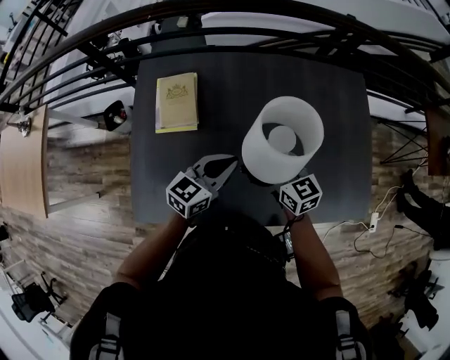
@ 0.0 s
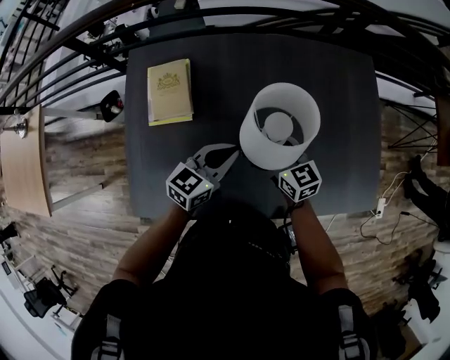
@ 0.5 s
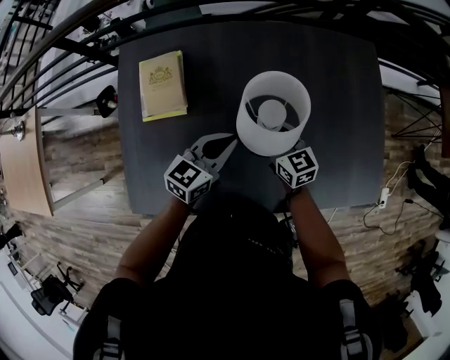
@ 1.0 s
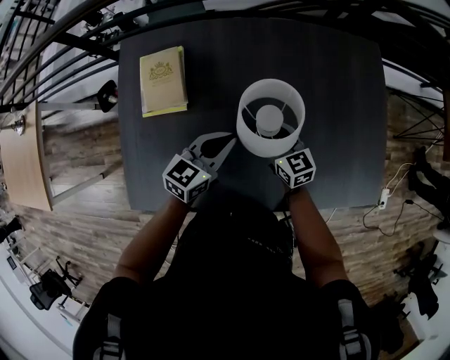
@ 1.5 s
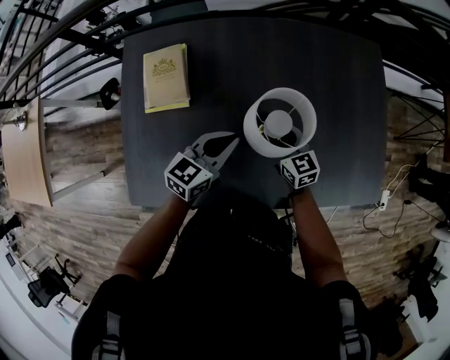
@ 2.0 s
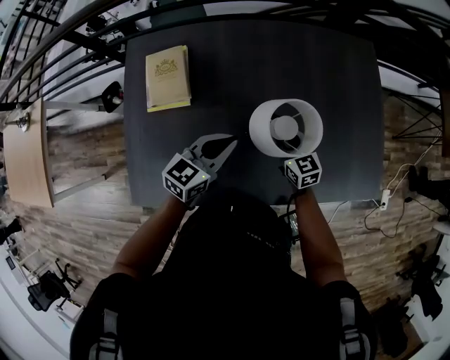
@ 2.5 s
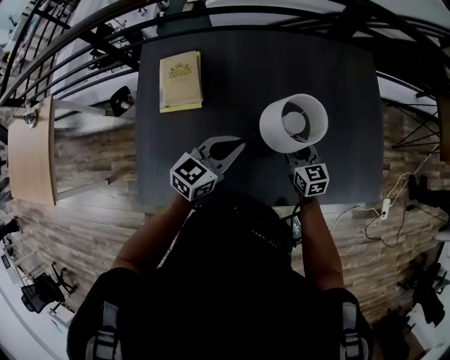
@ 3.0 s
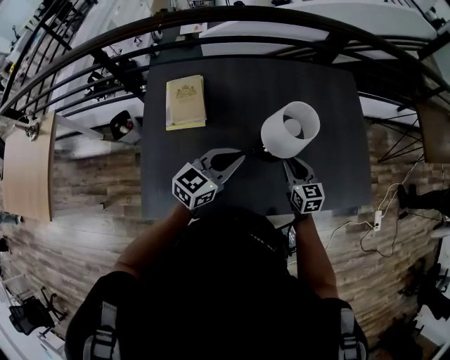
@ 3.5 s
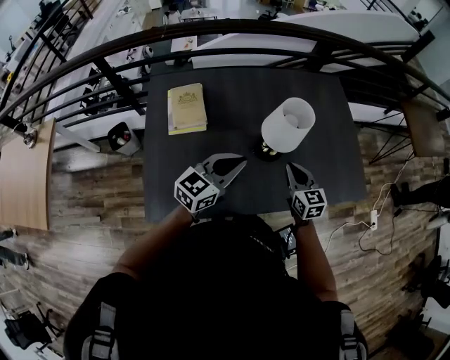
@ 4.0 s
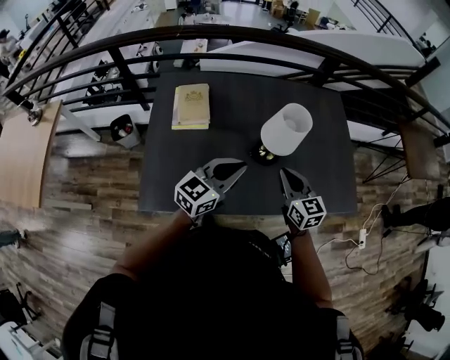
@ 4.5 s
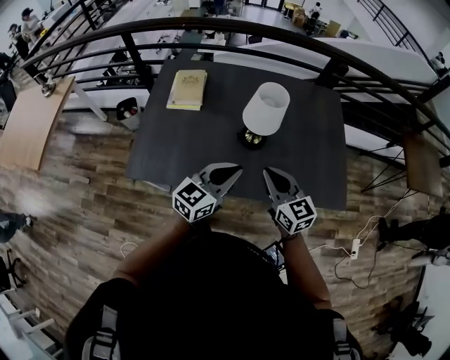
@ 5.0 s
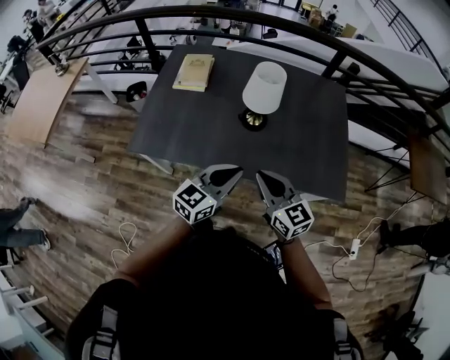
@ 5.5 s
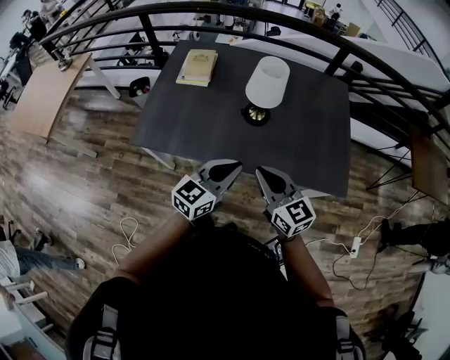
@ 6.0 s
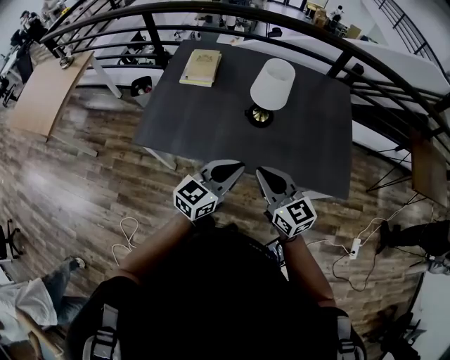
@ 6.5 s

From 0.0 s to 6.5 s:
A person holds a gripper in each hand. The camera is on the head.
From 0.0 s to 2.0 s: The left gripper goes approximately 5 cm downward. The right gripper goes approximately 10 cm downward.
From 2.0 s to 4.5 s: The grippers both shift backward and upward by approximately 25 cm. The right gripper closes up.
From 4.5 s to 6.5 s: The right gripper travels backward by approximately 25 cm, and swivels about 30 degrees, while the left gripper travels backward and to the right by approximately 25 cm.

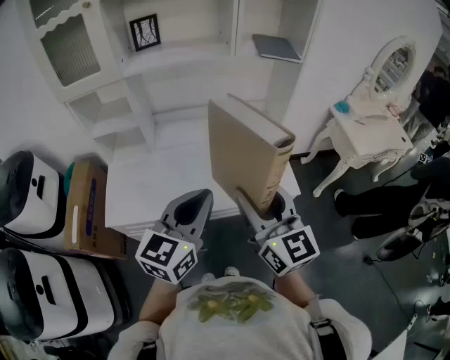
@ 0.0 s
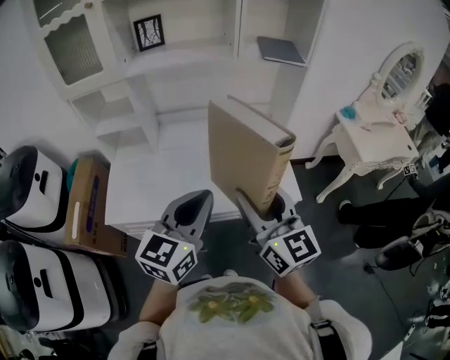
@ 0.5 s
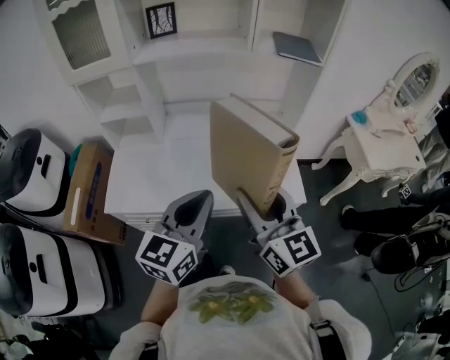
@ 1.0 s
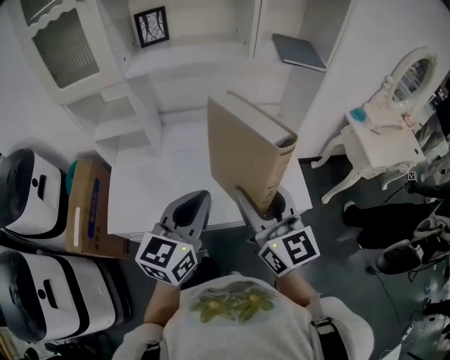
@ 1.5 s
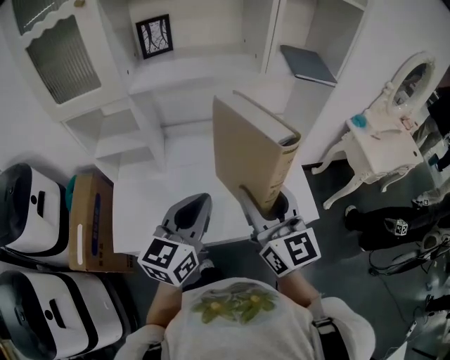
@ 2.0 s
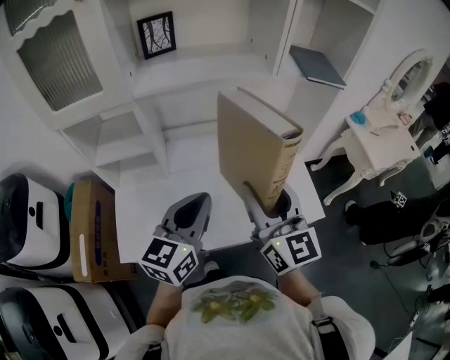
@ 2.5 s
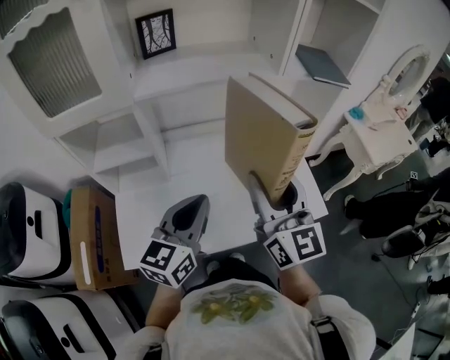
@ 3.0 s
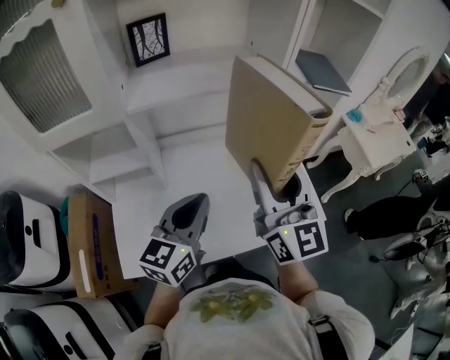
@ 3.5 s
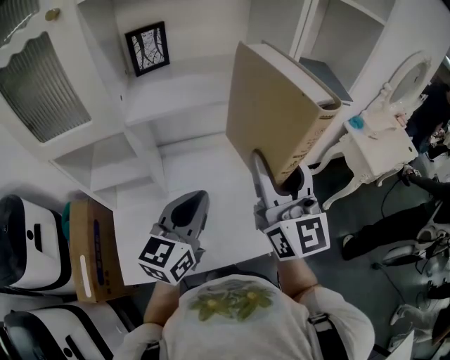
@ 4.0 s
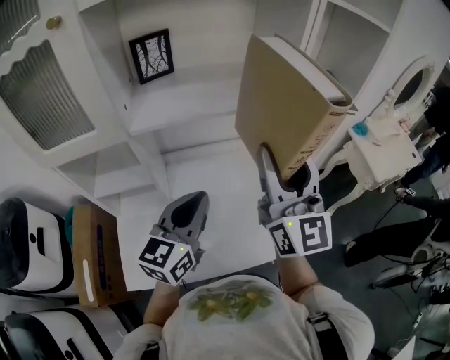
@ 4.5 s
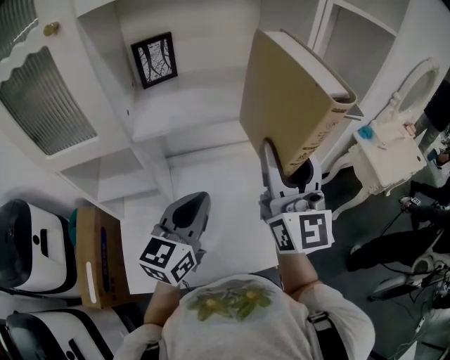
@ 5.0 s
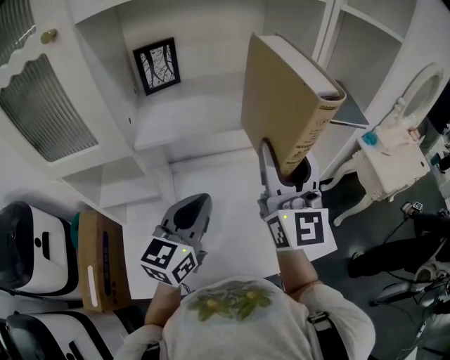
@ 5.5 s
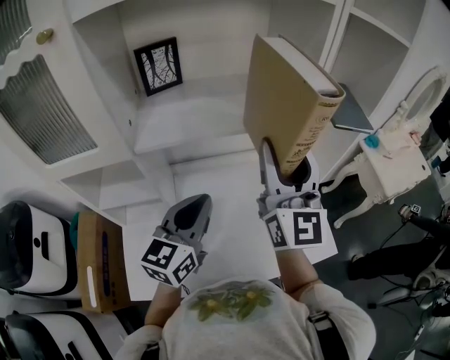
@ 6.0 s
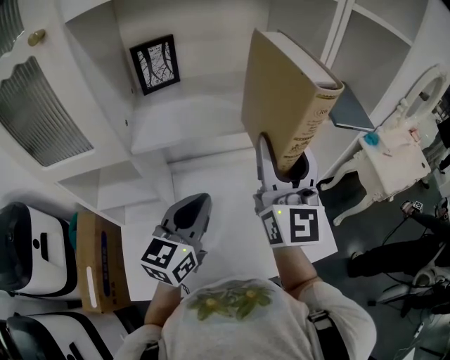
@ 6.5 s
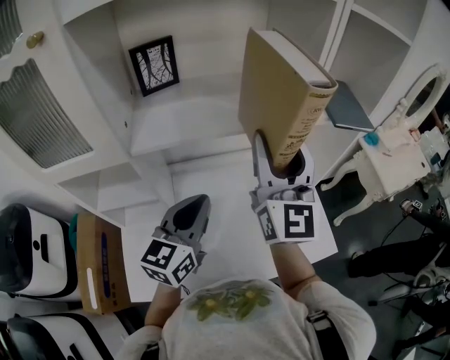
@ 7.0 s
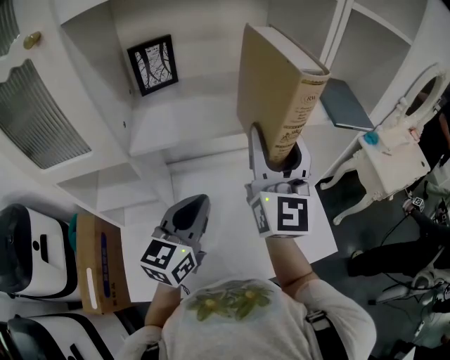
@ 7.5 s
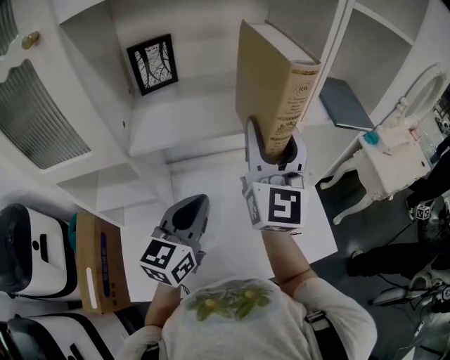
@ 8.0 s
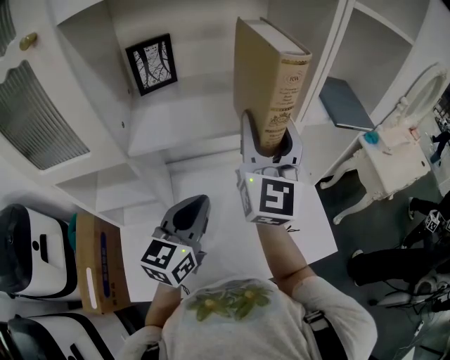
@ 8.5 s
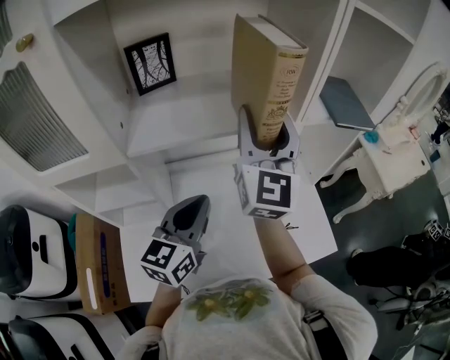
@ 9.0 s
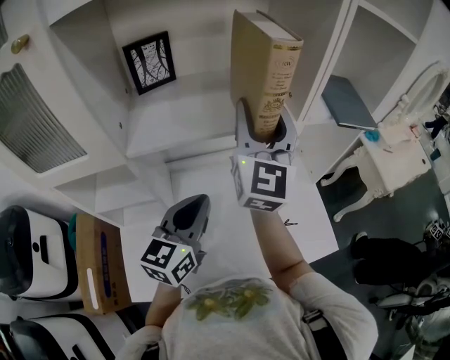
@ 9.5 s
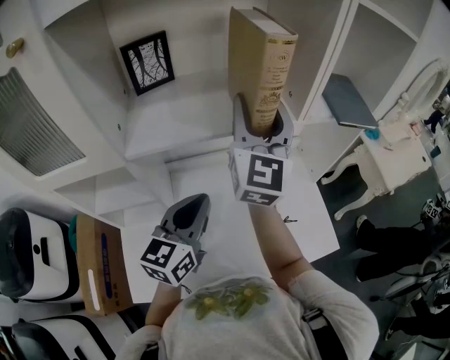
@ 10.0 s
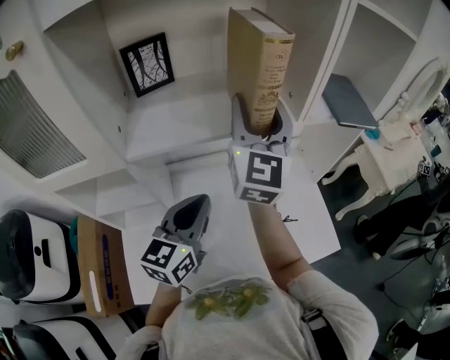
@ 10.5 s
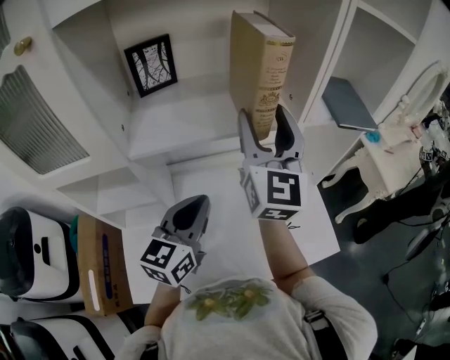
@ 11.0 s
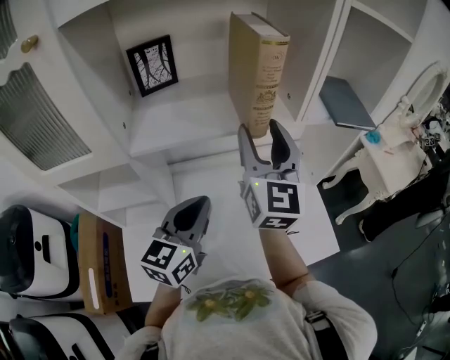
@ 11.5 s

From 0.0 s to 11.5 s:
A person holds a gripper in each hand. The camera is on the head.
From 0.0 s to 2.0 s: Both grippers move forward and to the left, roughly 15 cm.
From 2.0 s to 4.0 s: The left gripper moves forward and to the left, approximately 15 cm; the right gripper shifts approximately 15 cm forward and upward.
From 4.0 s to 6.0 s: The two grippers go roughly 10 cm forward.
From 6.0 s to 7.5 s: The grippers stay close to where they were, moving slightly.
From 7.5 s to 9.5 s: The right gripper shifts approximately 5 cm forward.
From 9.5 s to 11.5 s: There are only small adjustments of the grippers.

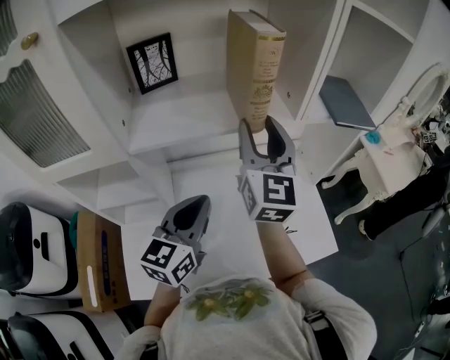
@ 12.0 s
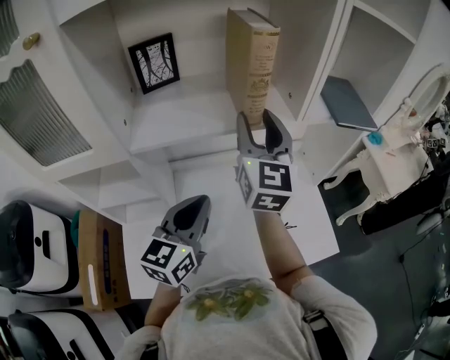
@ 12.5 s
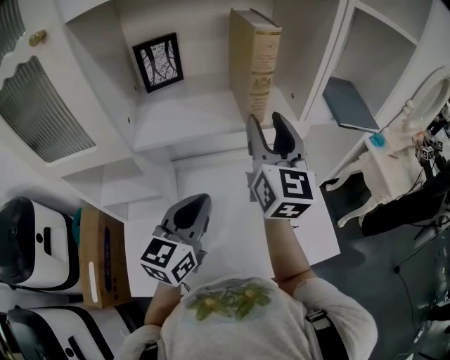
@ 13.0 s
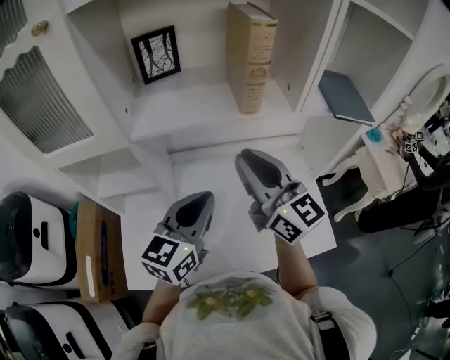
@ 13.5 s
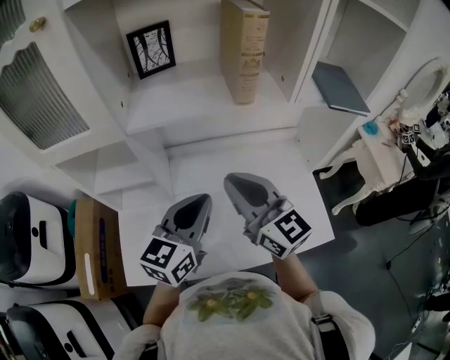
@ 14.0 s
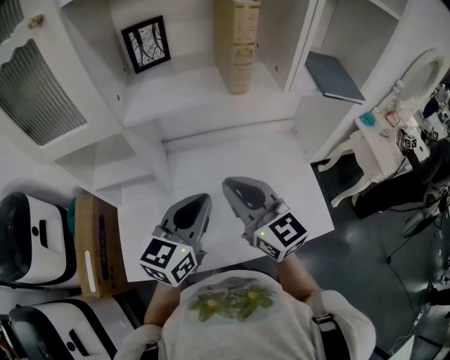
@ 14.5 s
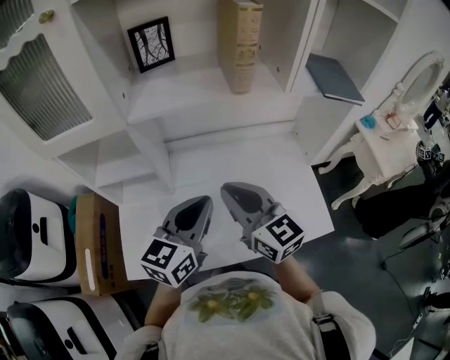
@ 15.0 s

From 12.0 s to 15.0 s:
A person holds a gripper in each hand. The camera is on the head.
From 12.0 s to 13.5 s: The right gripper shifts some 10 cm backward, rotates some 40 degrees, and closes up.
From 13.5 s to 15.0 s: The right gripper goes roughly 10 cm backward and downward; the left gripper heads backward, covering about 5 cm.

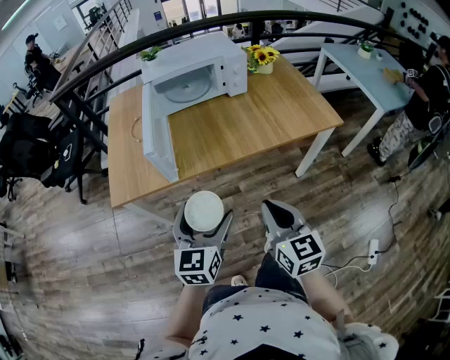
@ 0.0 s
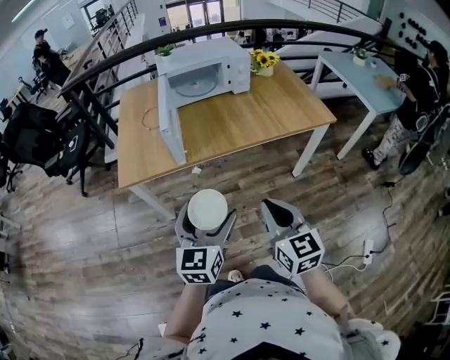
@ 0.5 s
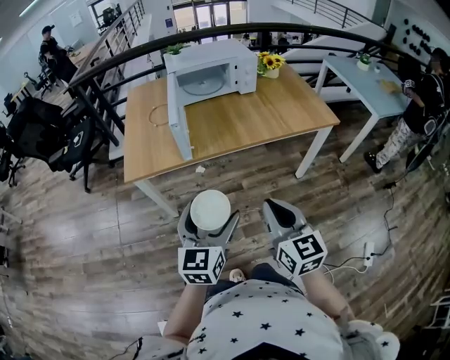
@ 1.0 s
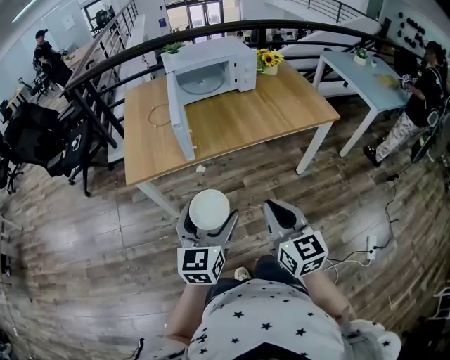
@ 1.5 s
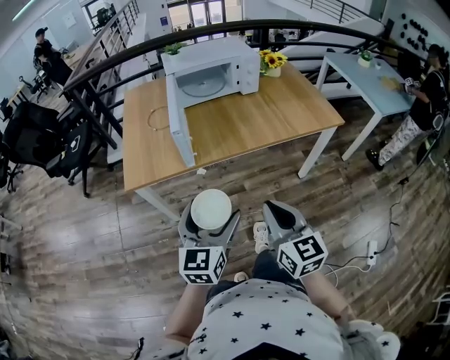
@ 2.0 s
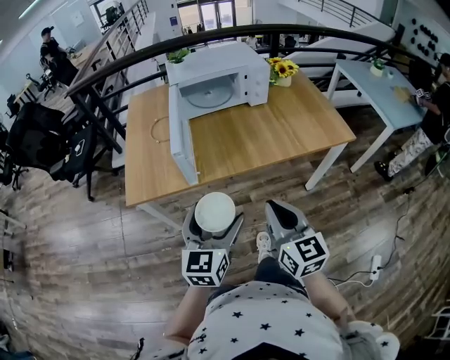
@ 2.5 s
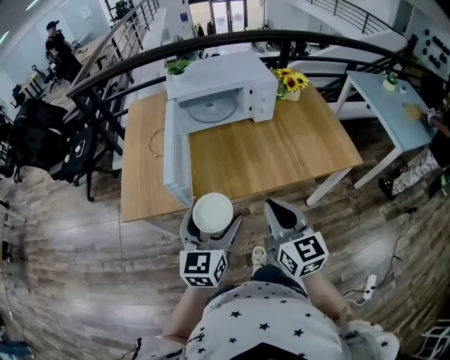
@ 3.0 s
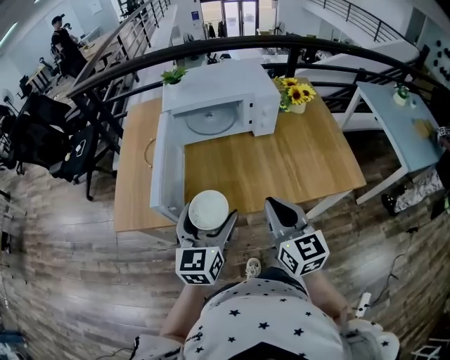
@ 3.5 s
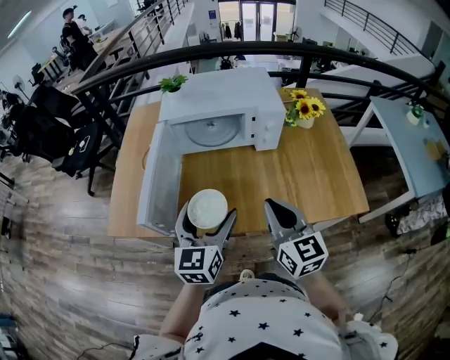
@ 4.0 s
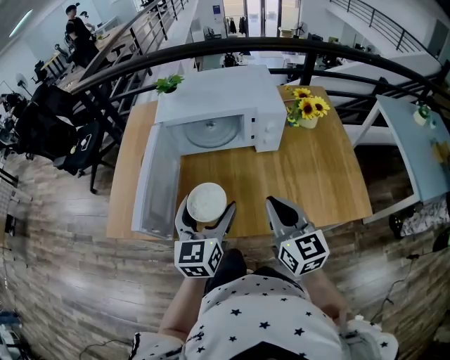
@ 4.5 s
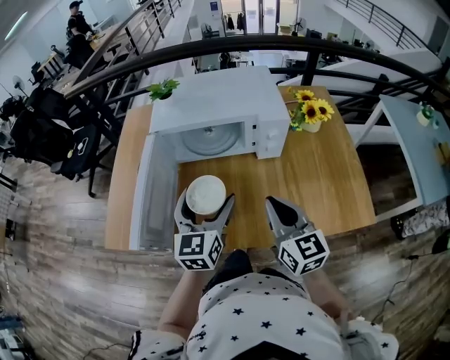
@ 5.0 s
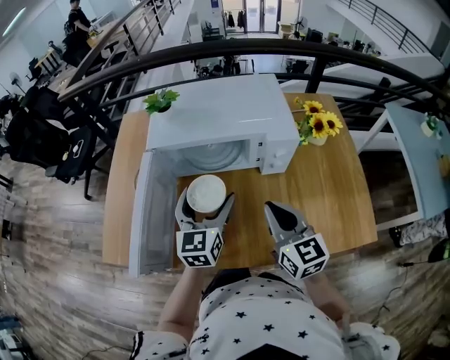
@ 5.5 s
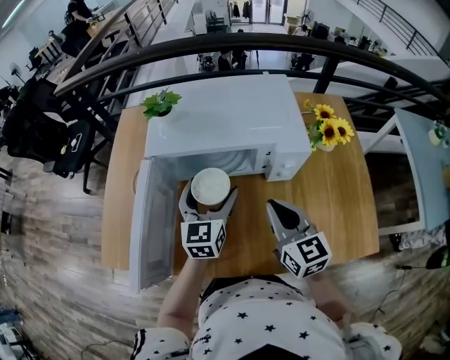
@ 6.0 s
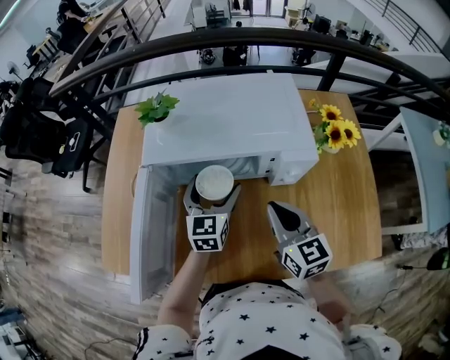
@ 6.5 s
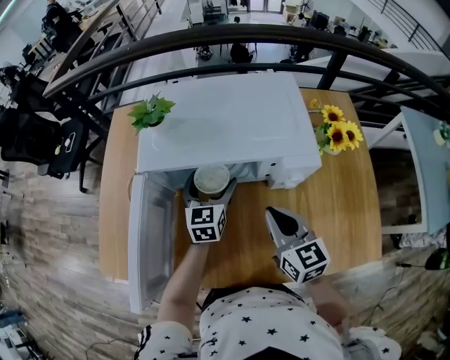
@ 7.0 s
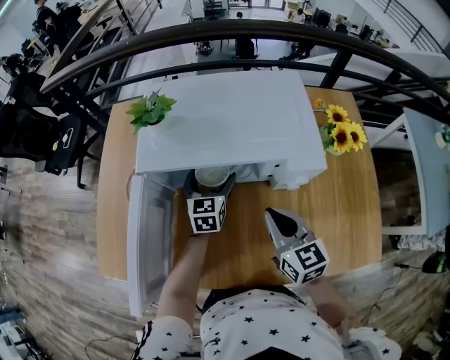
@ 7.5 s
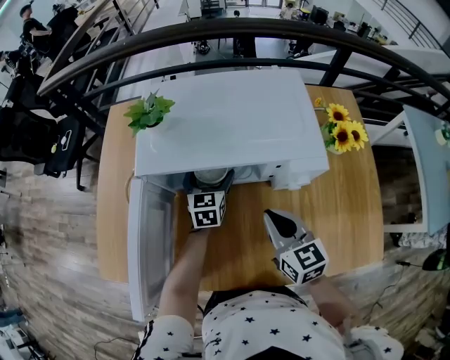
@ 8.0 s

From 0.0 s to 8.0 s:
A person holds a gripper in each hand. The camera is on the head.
From 0.0 s to 2.0 s: The two grippers go about 10 cm backward and to the left.
From 2.0 s to 4.0 s: Both grippers travel together forward, roughly 35 cm.
From 4.0 s to 6.0 s: Both grippers move forward, about 25 cm.
From 6.0 s to 8.0 s: The left gripper goes some 20 cm forward and downward. Meanwhile the right gripper goes some 5 cm downward.
